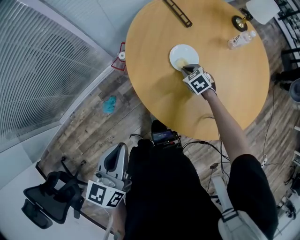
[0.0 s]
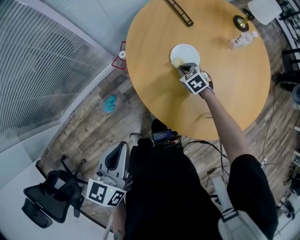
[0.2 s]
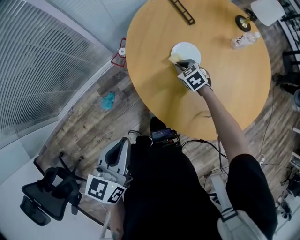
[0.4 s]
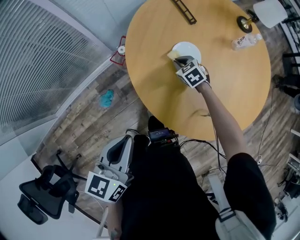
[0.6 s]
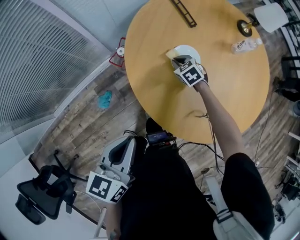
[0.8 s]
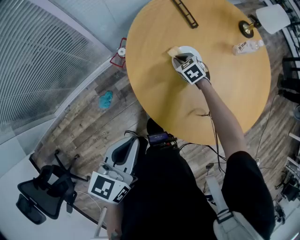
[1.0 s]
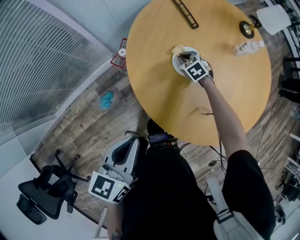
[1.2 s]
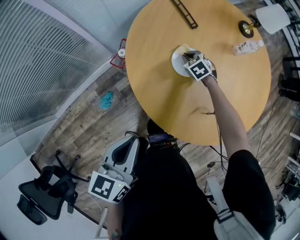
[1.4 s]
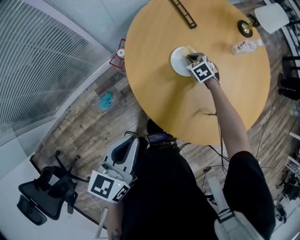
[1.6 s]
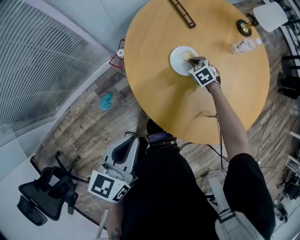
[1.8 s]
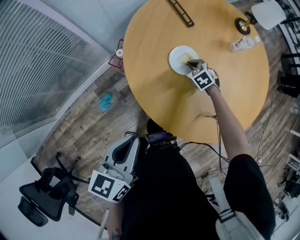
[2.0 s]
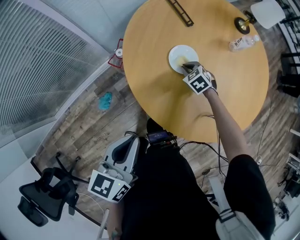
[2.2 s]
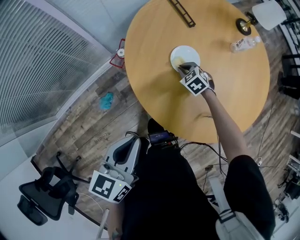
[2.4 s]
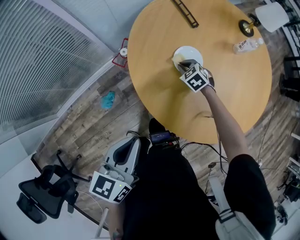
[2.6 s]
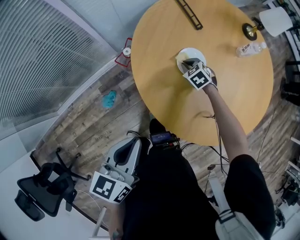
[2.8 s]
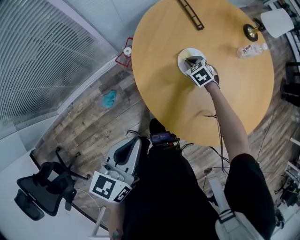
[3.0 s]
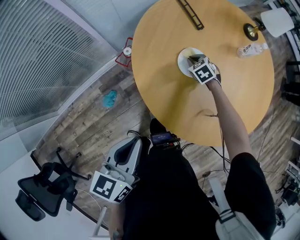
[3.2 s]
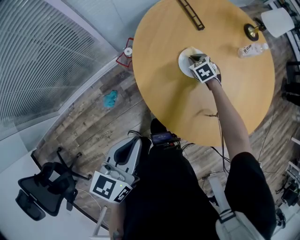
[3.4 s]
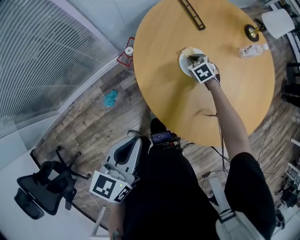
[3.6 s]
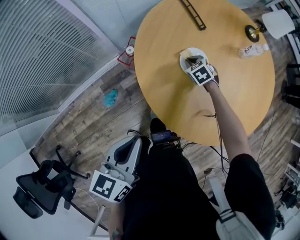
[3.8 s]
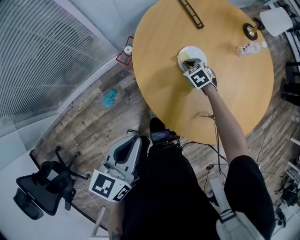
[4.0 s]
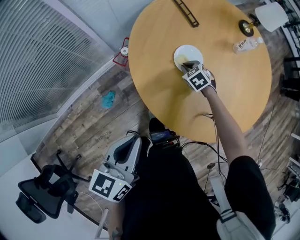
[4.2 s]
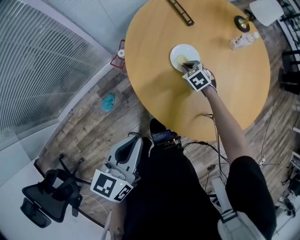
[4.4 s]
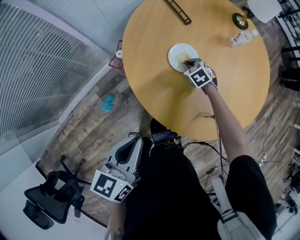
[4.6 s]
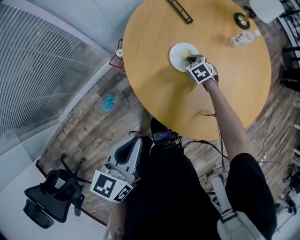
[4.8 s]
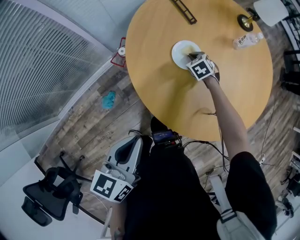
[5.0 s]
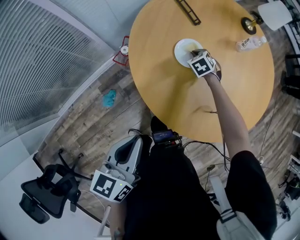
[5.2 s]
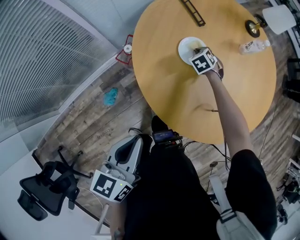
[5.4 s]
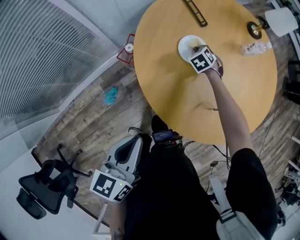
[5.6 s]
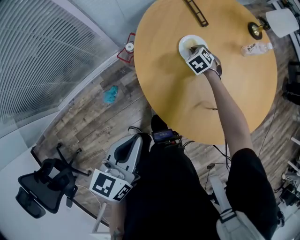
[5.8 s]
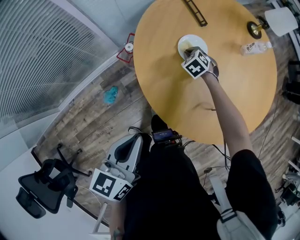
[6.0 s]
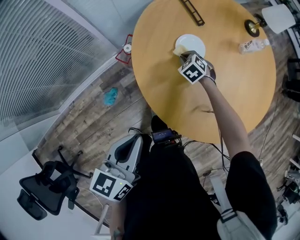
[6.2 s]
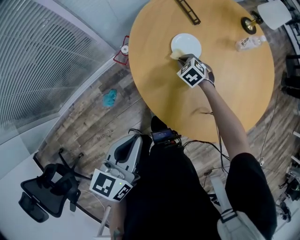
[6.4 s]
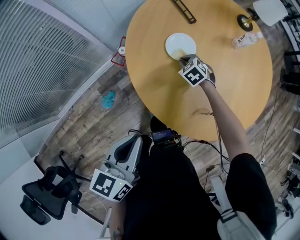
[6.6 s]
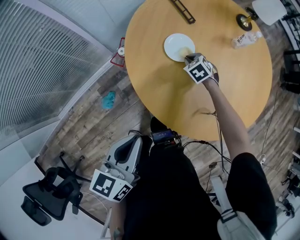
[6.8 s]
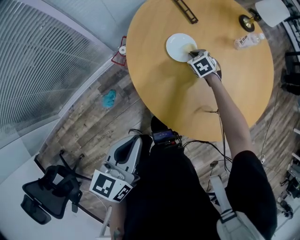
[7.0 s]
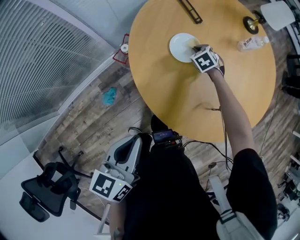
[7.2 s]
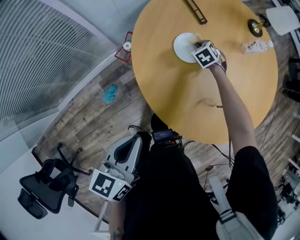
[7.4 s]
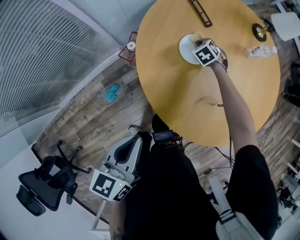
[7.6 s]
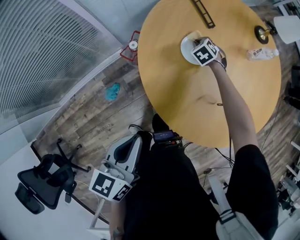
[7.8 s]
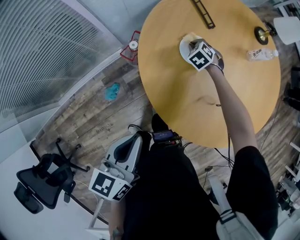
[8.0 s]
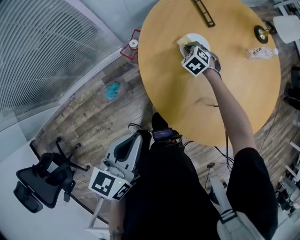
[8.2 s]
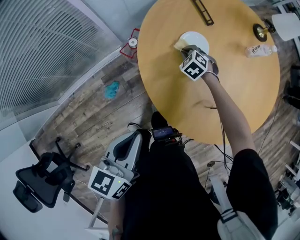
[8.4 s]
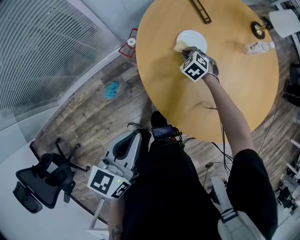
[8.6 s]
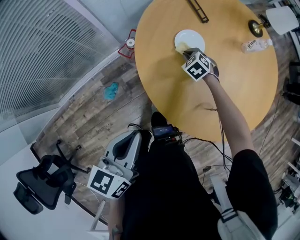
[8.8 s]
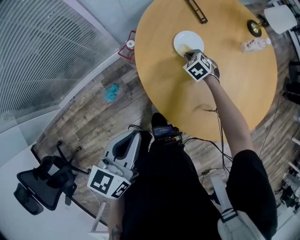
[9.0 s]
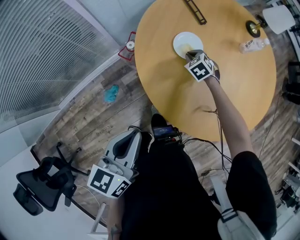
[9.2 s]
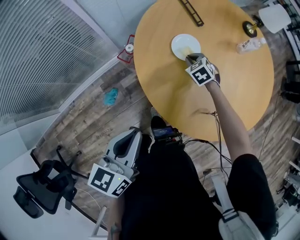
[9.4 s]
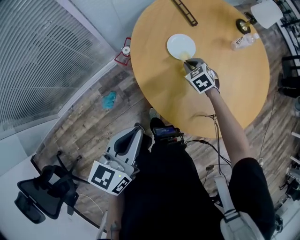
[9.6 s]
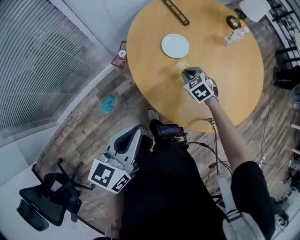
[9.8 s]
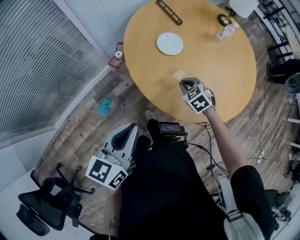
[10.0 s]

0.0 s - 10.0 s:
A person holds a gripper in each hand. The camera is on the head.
0.0 s - 1.4 s: The right gripper heads forward, covering approximately 10 cm. The left gripper moves approximately 5 cm.
1.4 s - 2.8 s: The right gripper changes place by approximately 5 cm.
2.8 s - 4.2 s: There are only small adjustments of the grippers.
4.2 s - 5.8 s: The right gripper travels forward by some 10 cm.
7.2 s - 8.6 s: The right gripper heads to the left and backward, covering some 10 cm, and turns by some 20 degrees.
8.6 s - 10.0 s: The right gripper travels backward by some 20 cm. The left gripper is displaced backward by about 5 cm.

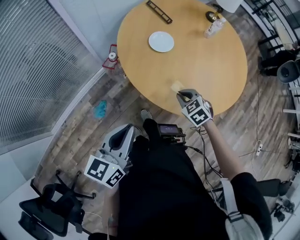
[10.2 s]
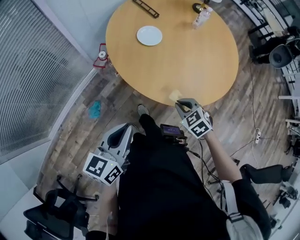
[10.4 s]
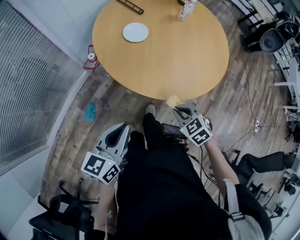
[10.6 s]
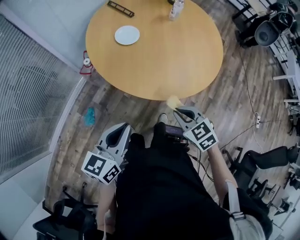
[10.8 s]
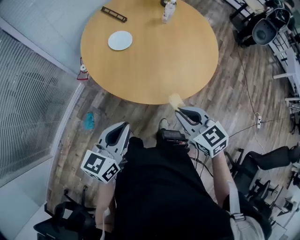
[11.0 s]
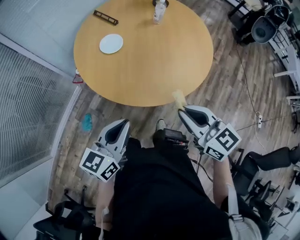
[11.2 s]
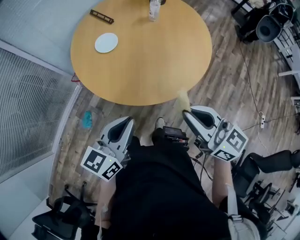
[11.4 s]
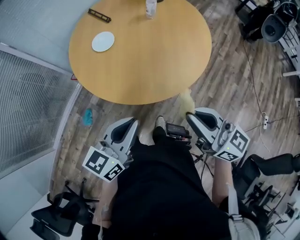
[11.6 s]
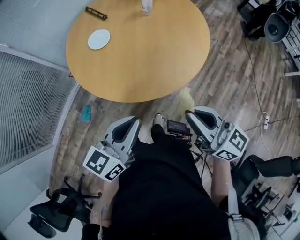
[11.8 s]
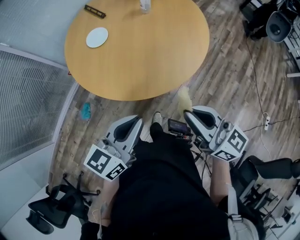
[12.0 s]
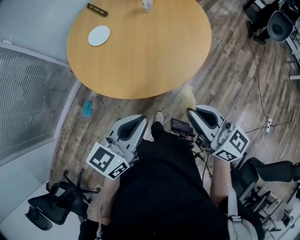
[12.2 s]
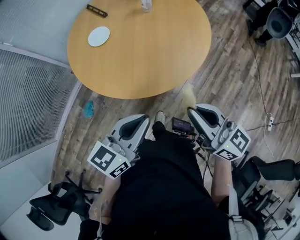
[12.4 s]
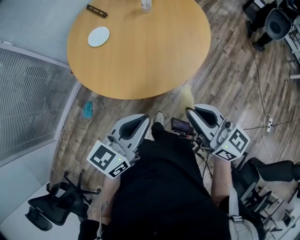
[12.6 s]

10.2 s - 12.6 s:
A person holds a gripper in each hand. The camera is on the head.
10.2 s - 11.4 s: The left gripper shifts about 25 cm to the right; the right gripper moves upward, to the right and backward, about 35 cm, and tilts its fingers roughly 50 degrees upward.
11.4 s - 12.6 s: The two grippers go approximately 15 cm to the right.

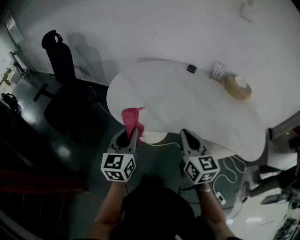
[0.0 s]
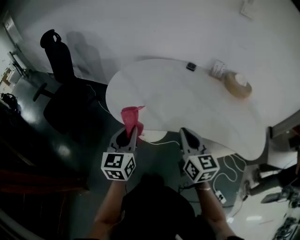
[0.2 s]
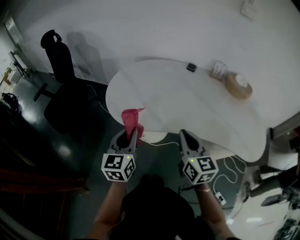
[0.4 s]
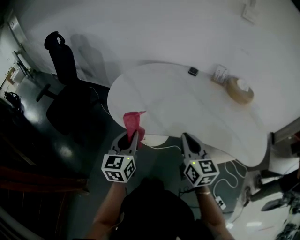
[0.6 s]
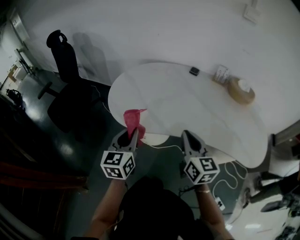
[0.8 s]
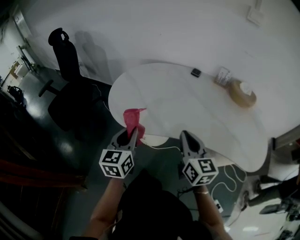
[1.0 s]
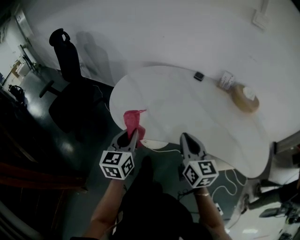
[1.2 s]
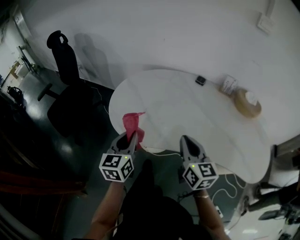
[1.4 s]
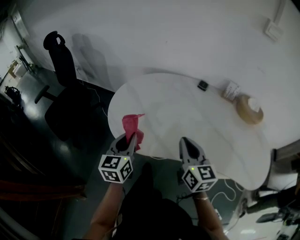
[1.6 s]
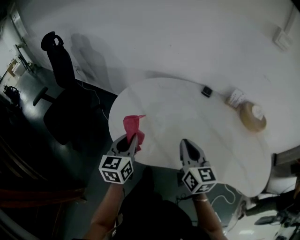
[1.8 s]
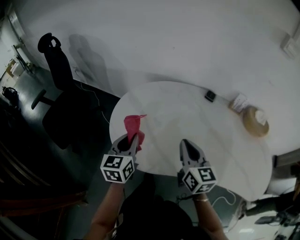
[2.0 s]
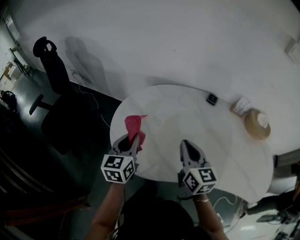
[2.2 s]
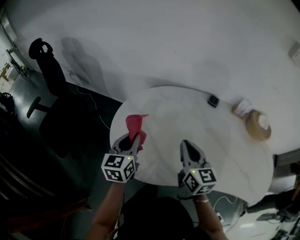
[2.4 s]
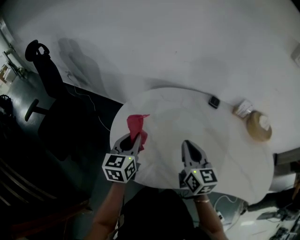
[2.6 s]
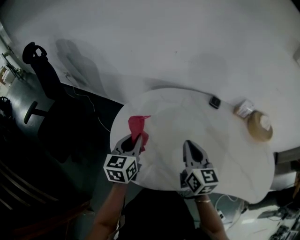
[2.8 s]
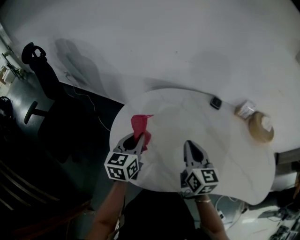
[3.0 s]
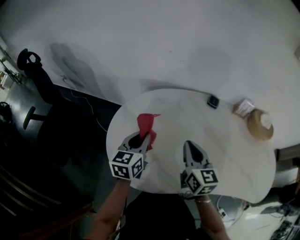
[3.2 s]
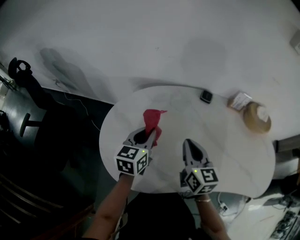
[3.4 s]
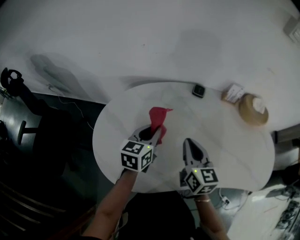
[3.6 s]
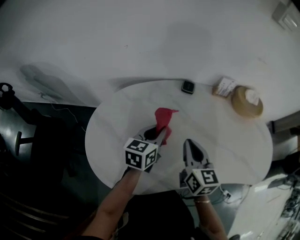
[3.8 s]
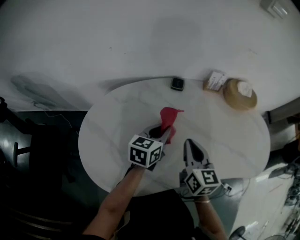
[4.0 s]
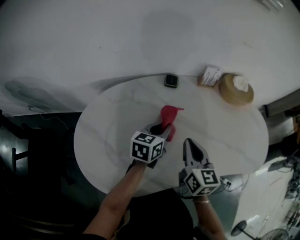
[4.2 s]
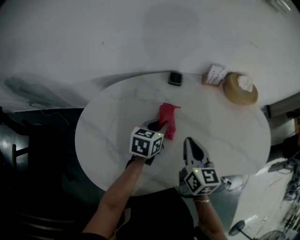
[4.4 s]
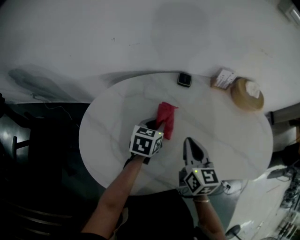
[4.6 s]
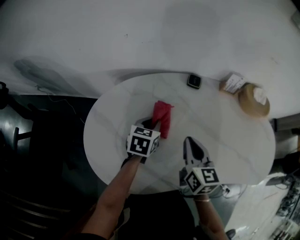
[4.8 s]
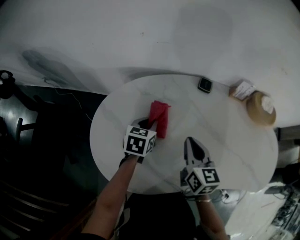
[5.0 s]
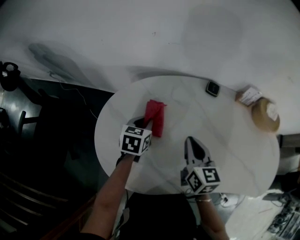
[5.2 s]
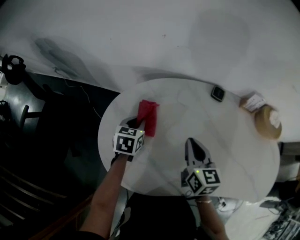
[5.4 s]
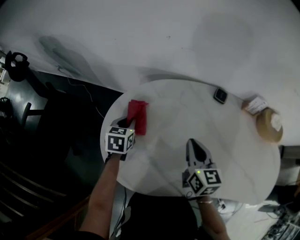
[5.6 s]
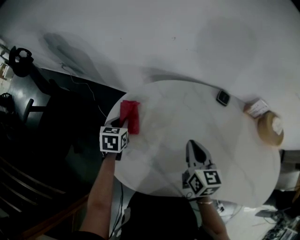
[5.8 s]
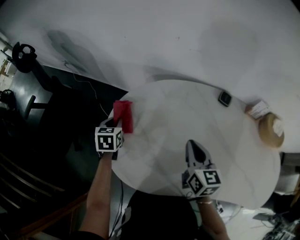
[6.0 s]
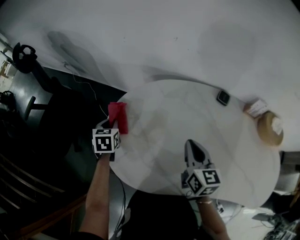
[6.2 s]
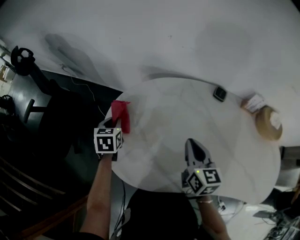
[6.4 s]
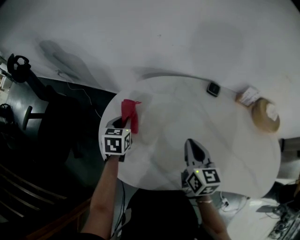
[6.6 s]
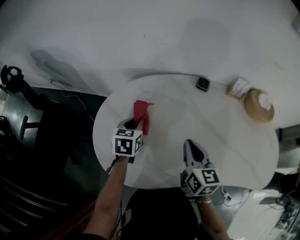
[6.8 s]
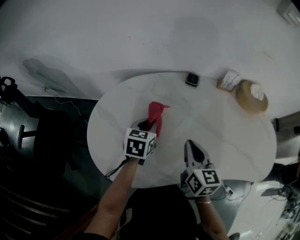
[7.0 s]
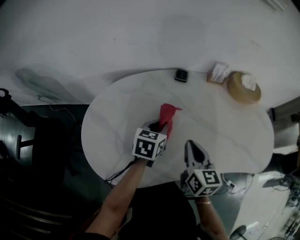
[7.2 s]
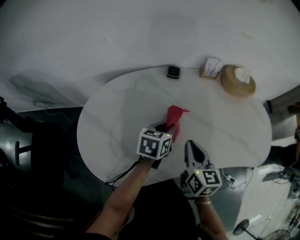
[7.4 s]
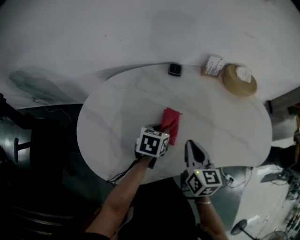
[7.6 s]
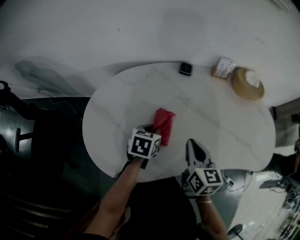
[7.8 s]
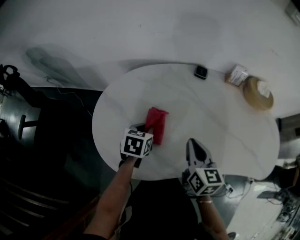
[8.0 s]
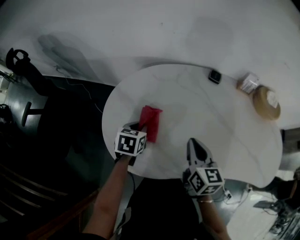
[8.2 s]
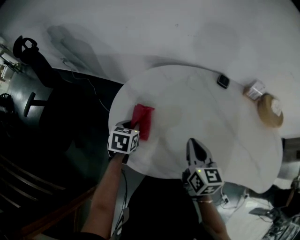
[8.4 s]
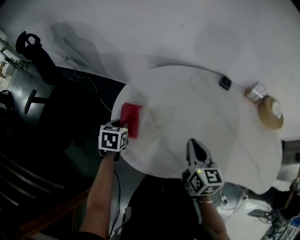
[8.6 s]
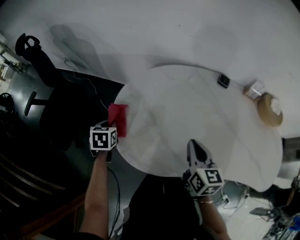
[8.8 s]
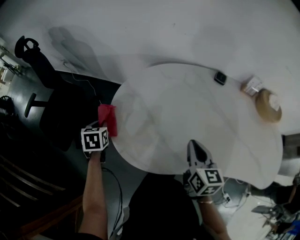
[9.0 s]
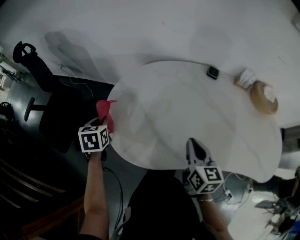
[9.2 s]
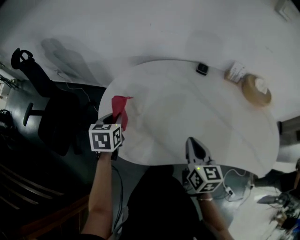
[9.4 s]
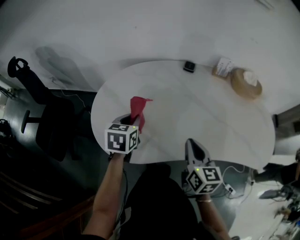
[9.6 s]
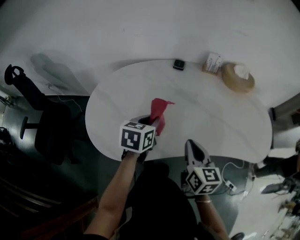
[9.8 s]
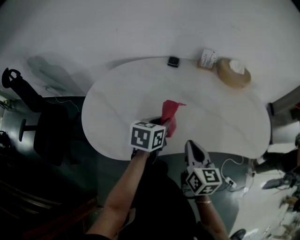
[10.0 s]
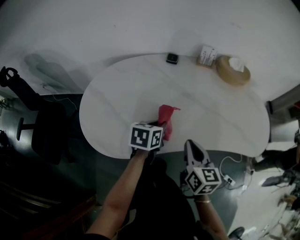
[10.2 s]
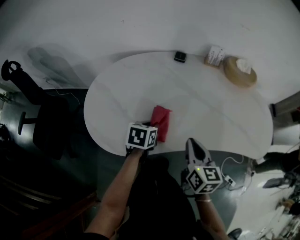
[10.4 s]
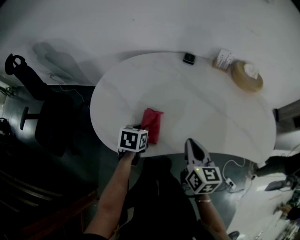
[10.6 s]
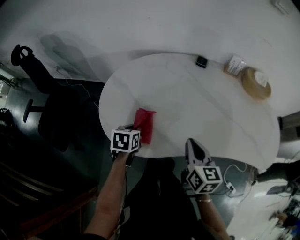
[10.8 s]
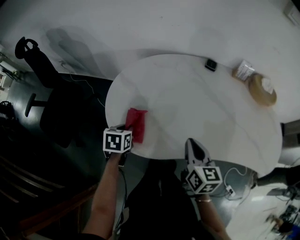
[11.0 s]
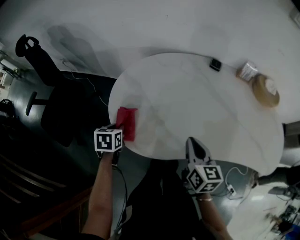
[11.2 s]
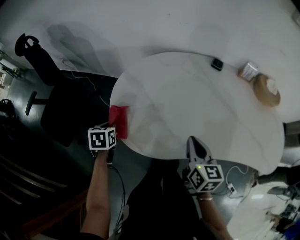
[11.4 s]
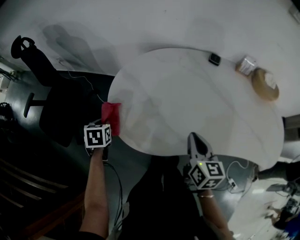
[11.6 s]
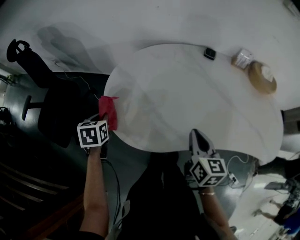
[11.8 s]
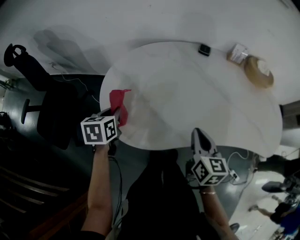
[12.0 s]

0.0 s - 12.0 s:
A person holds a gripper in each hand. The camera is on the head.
0.0 s - 1.6 s: The two grippers go approximately 10 cm forward.
1.6 s - 3.0 s: The two grippers go some 20 cm forward.
3.0 s - 4.4 s: The right gripper changes place by roughly 15 cm, and turns by some 20 degrees; the left gripper changes place by roughly 30 cm, and changes its angle by some 40 degrees.
4.4 s - 6.0 s: The left gripper moves roughly 40 cm, and changes its angle by approximately 50 degrees. The right gripper changes place by roughly 15 cm, and swivels about 20 degrees.
6.0 s - 7.6 s: The left gripper moves approximately 40 cm, and swivels about 40 degrees. Meanwhile the right gripper shifts by approximately 20 cm, and turns by about 20 degrees.
7.6 s - 9.0 s: The left gripper shifts by approximately 40 cm, and turns by roughly 50 degrees. The right gripper ends up roughly 15 cm from where it was.
9.0 s - 10.4 s: The right gripper shifts by some 15 cm. Meanwhile the left gripper travels upward and back again, roughly 10 cm each way, and turns by approximately 40 degrees.
10.4 s - 12.0 s: The left gripper changes place by roughly 25 cm, and changes its angle by some 20 degrees.
